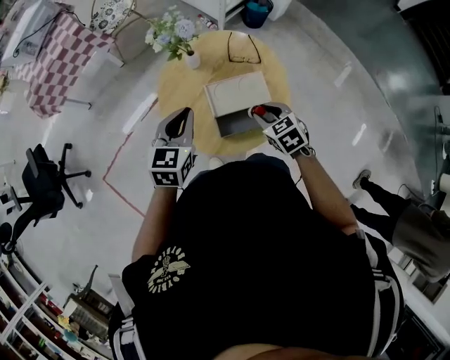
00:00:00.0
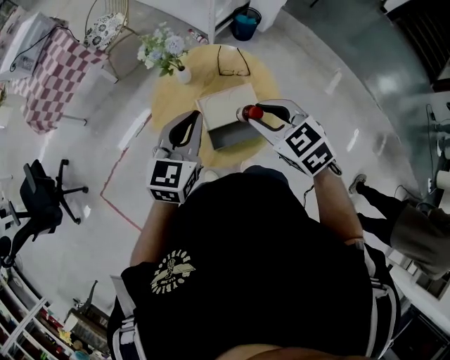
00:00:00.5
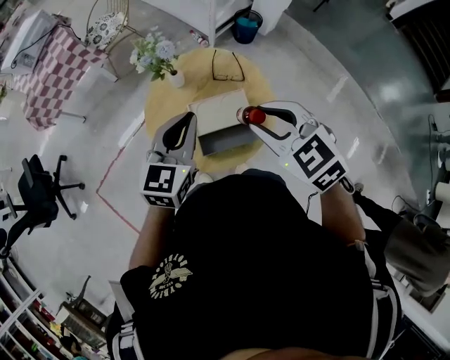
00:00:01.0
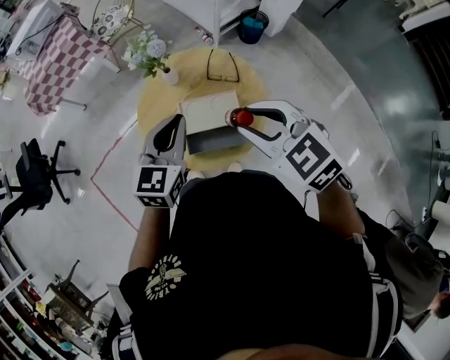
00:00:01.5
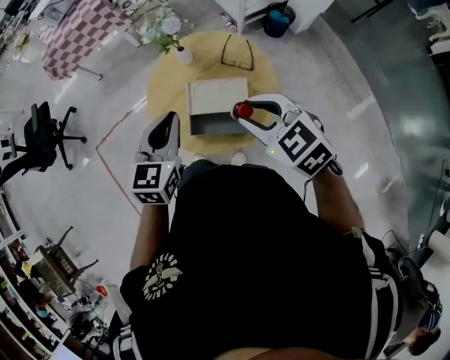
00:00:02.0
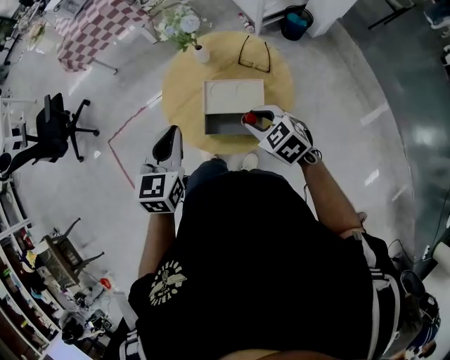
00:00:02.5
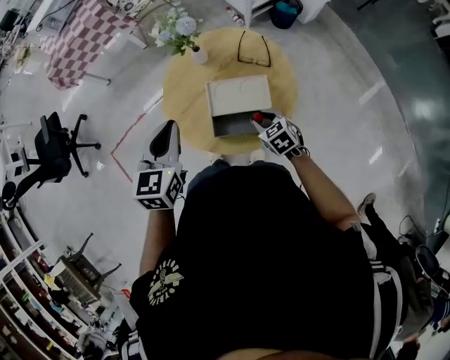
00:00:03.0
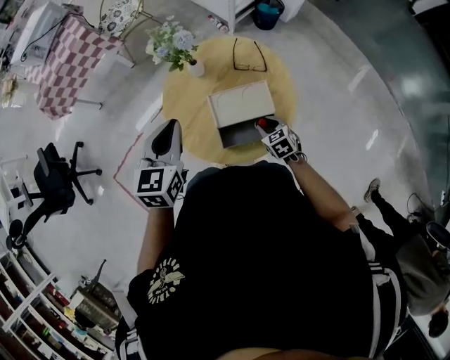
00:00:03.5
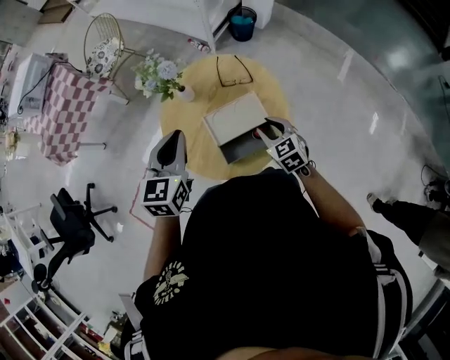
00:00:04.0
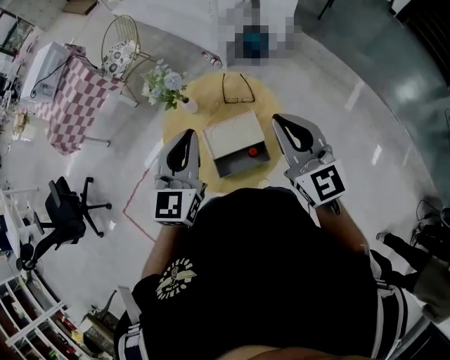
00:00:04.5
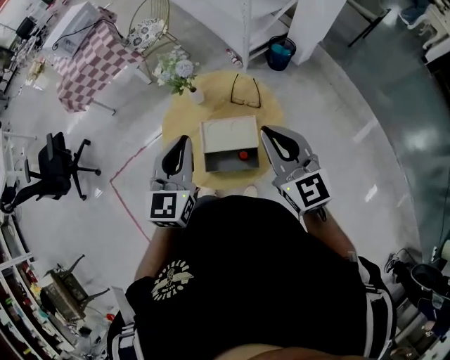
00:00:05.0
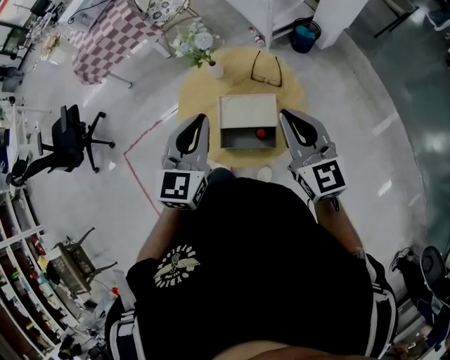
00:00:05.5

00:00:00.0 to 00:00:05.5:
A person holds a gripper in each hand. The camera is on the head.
00:00:00.0 to 00:00:02.0: The right gripper goes some 20 cm upward, and turns by some 40 degrees; the left gripper travels to the right, upward and backward by some 15 cm.
00:00:02.0 to 00:00:03.5: The left gripper travels forward and to the left by some 15 cm; the right gripper goes approximately 30 cm downward, and swivels some 40 degrees.
00:00:03.5 to 00:00:05.5: The right gripper moves upward, about 35 cm, points its fingers some 50 degrees further upward, and closes its fingers, while the left gripper moves to the right, upward and backward, some 15 cm.

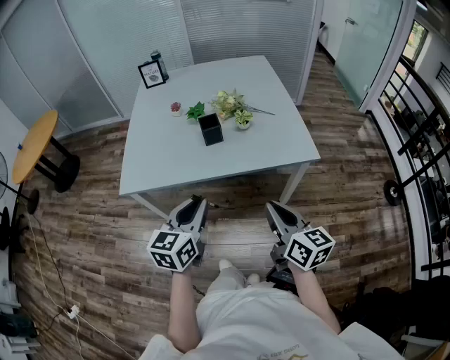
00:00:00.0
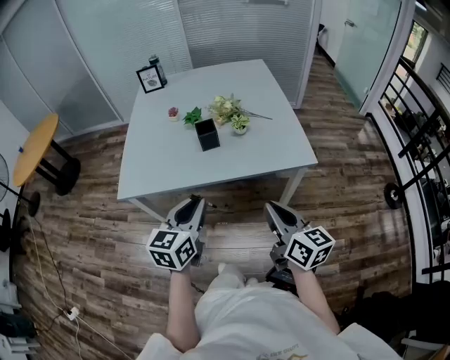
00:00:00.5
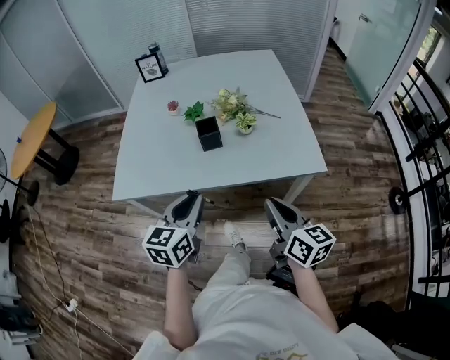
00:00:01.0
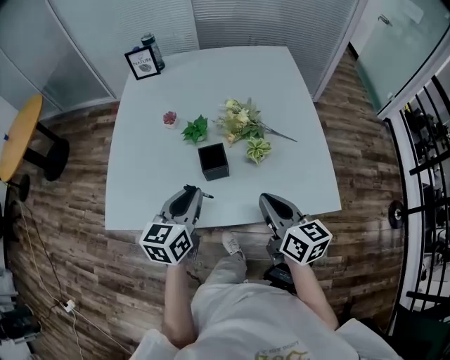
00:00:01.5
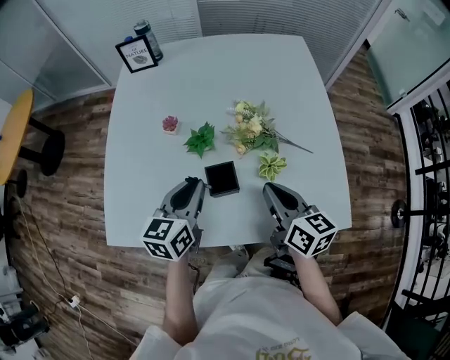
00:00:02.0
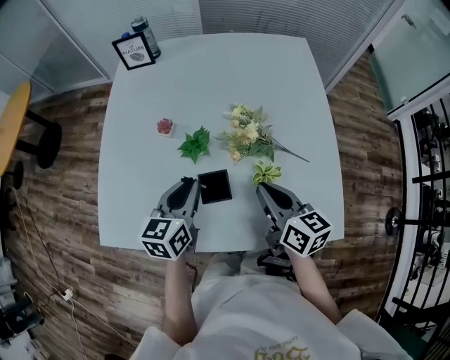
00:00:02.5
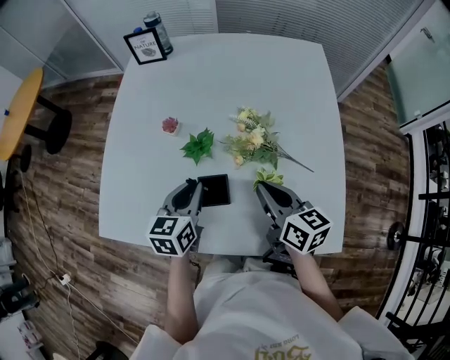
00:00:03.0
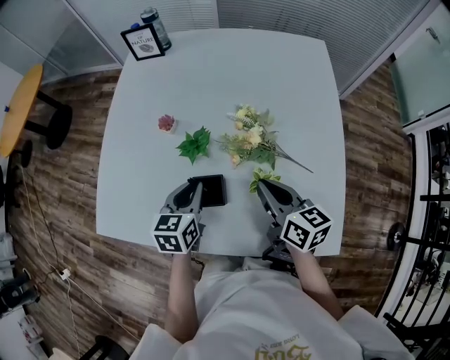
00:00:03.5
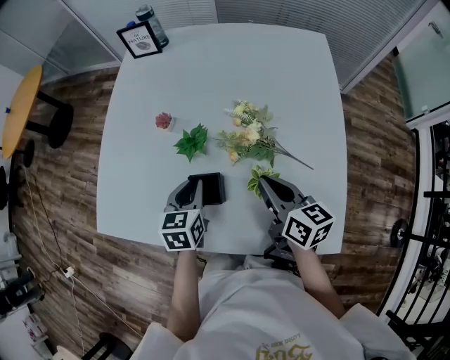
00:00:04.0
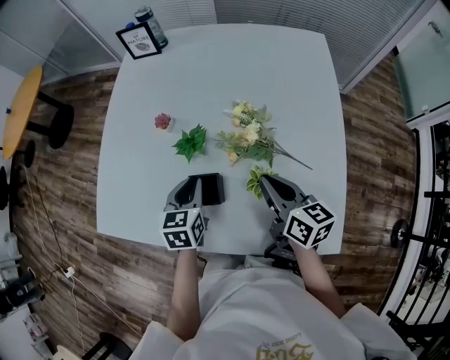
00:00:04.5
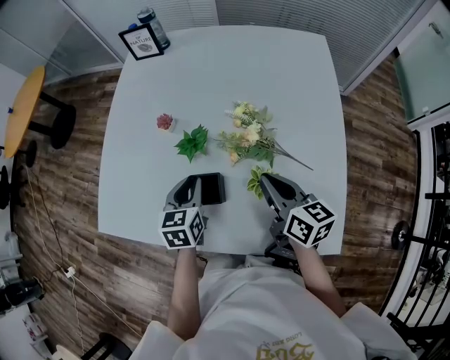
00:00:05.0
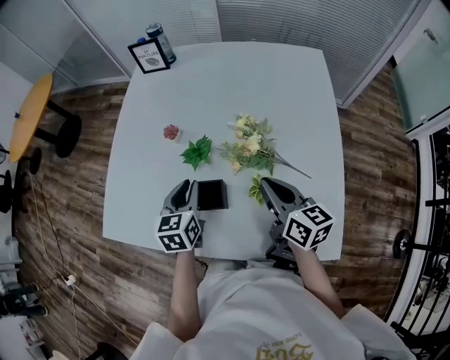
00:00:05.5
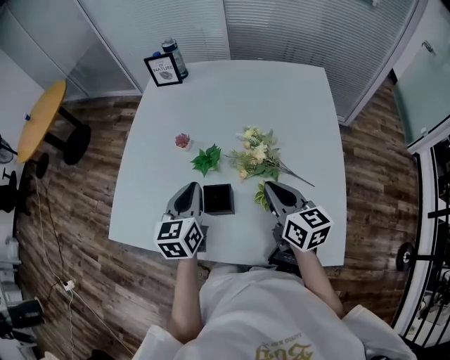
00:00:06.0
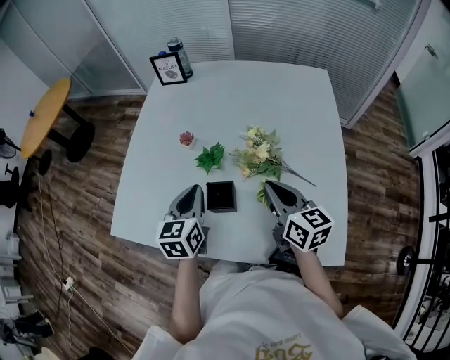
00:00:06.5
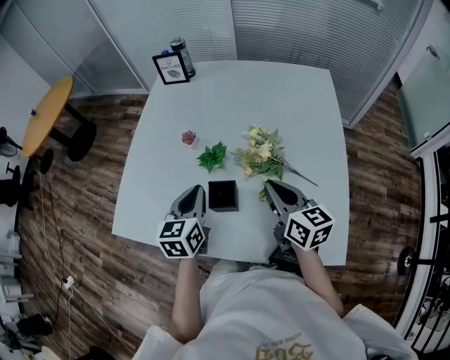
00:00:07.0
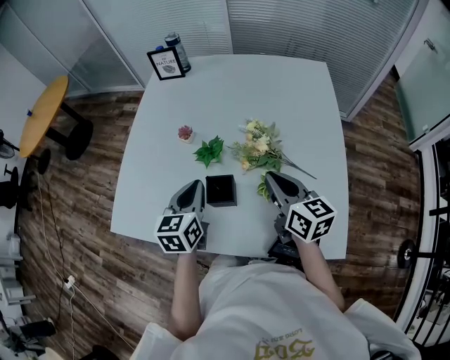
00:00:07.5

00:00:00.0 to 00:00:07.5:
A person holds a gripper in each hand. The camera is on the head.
00:00:00.0 to 00:00:02.0: Both grippers are carried forward, roughly 40 cm.
00:00:02.0 to 00:00:04.0: The left gripper heads downward, covering approximately 10 cm, and swivels some 20 degrees, while the right gripper shifts about 5 cm forward.
00:00:04.0 to 00:00:05.5: There are only small adjustments of the grippers.
00:00:05.5 to 00:00:07.5: The left gripper moves about 5 cm.

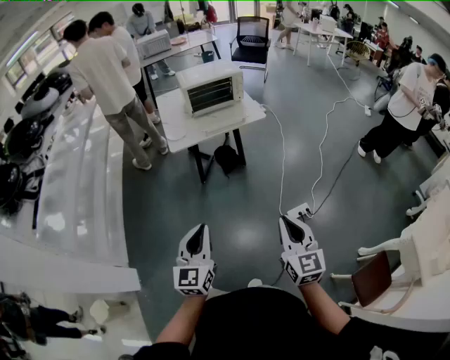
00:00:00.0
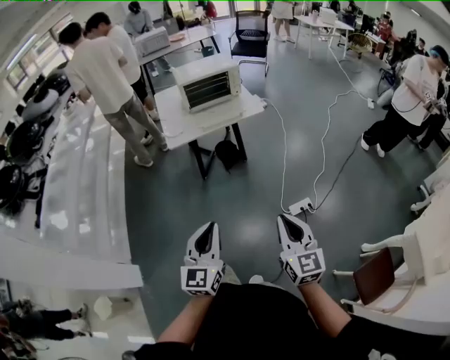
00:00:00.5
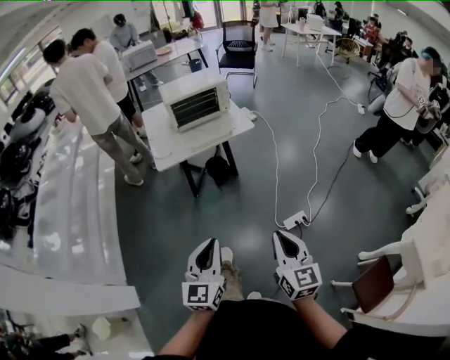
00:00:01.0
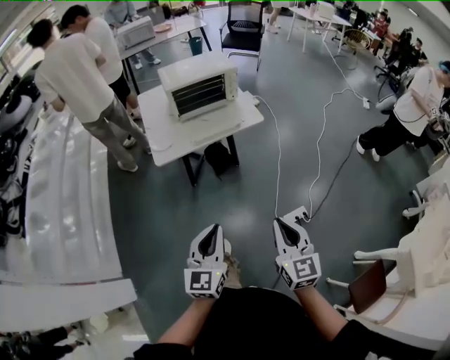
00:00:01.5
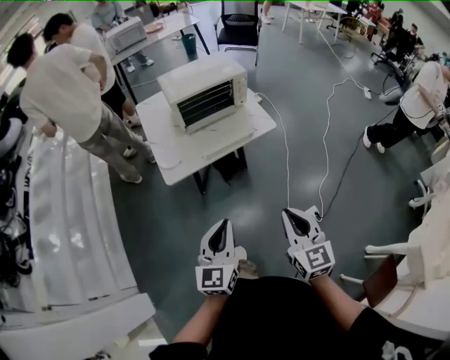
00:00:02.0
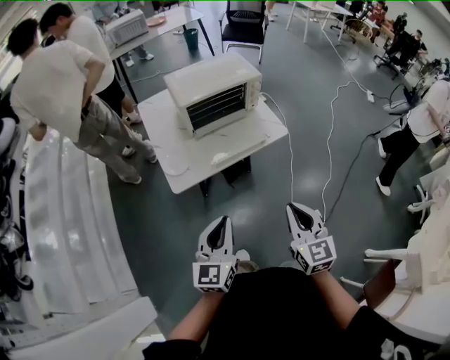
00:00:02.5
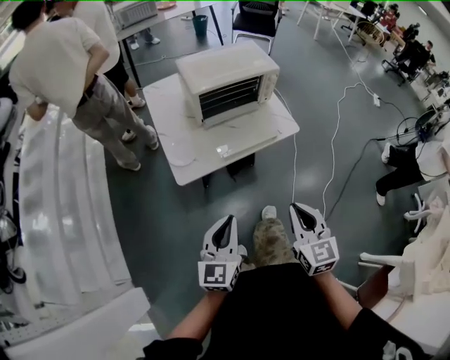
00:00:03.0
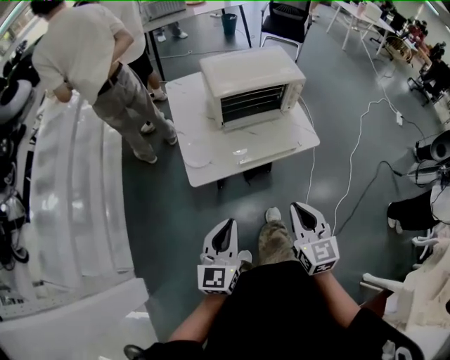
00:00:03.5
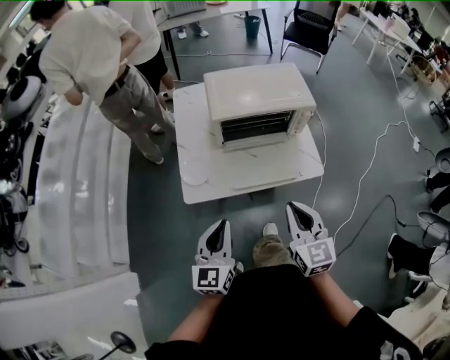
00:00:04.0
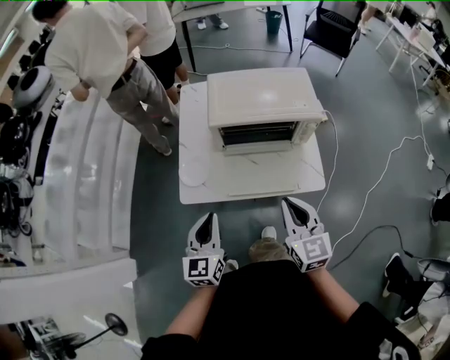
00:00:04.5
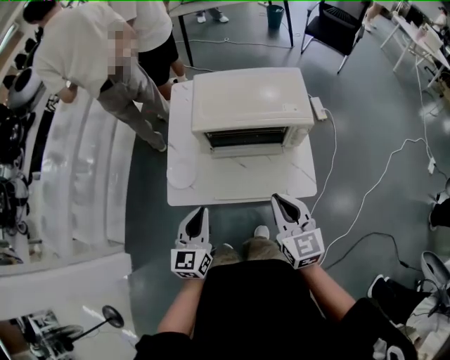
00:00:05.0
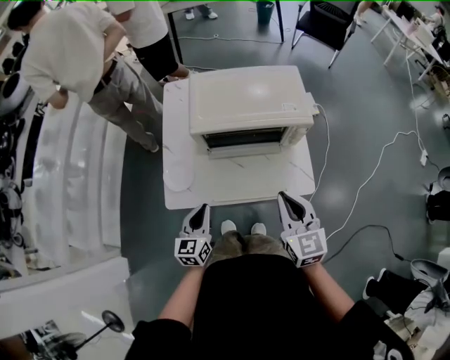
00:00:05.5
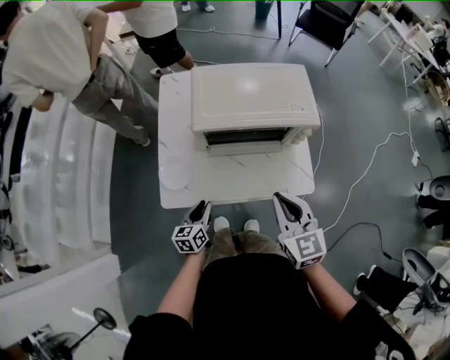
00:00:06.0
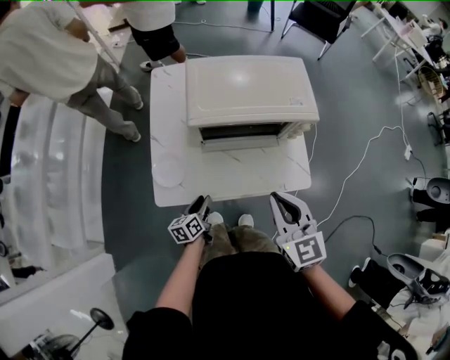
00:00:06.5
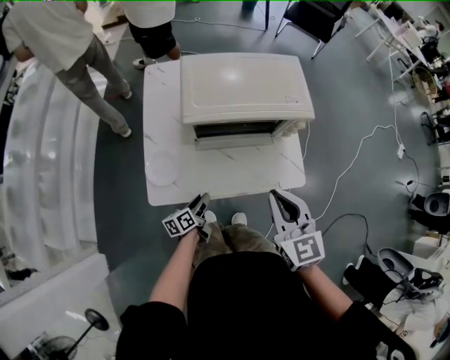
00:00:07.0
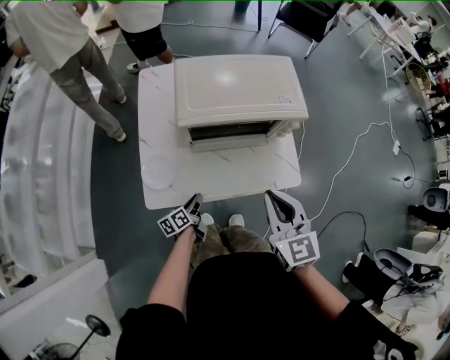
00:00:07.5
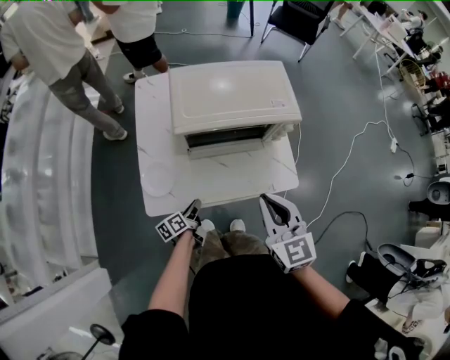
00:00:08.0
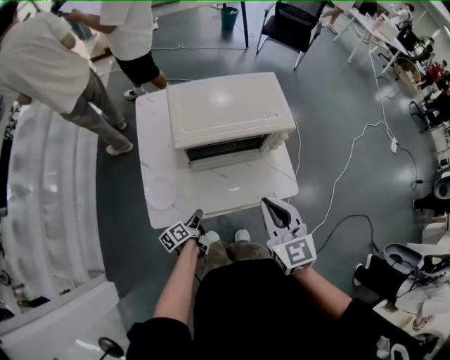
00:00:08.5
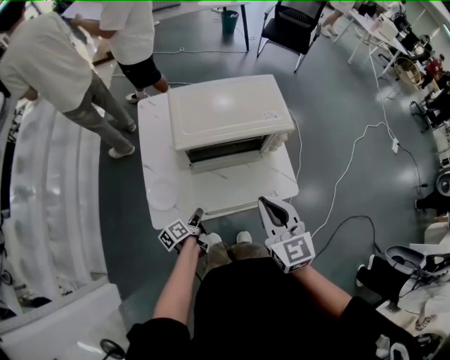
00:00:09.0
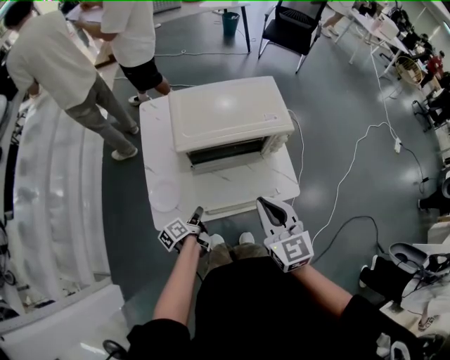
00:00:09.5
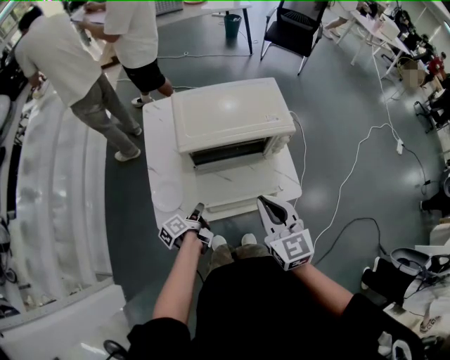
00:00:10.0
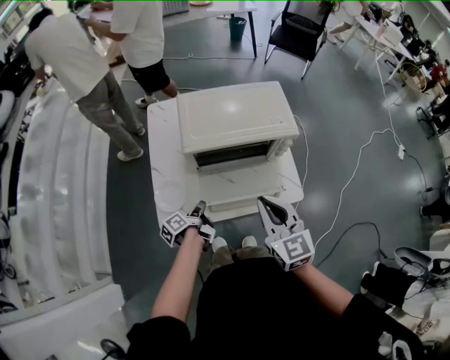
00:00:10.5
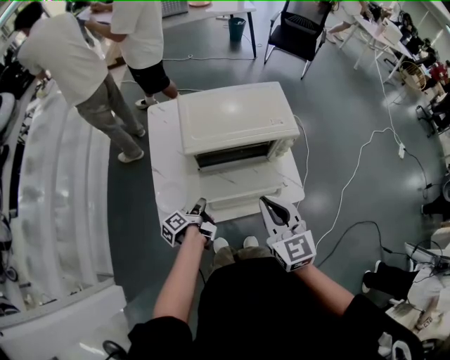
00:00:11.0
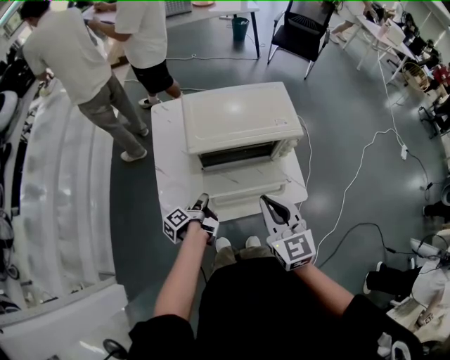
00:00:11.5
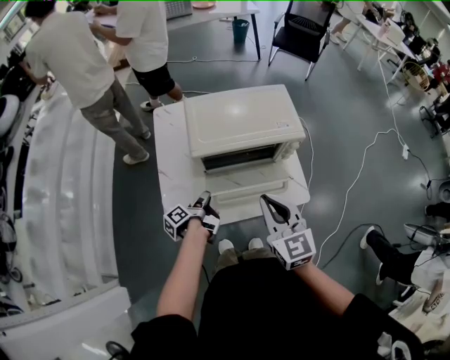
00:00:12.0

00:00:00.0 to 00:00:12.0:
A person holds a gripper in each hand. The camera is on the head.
00:00:00.0 to 00:00:02.0: Both grippers move forward, roughly 35 cm.
00:00:02.0 to 00:00:04.0: Both grippers travel together forward, roughly 30 cm.
00:00:04.0 to 00:00:06.0: The right gripper moves forward, about 15 cm, while the left gripper heads downward and forward, covering about 25 cm, and changes its angle by about 30 degrees.
00:00:06.0 to 00:00:08.0: The left gripper heads downward, covering roughly 5 cm, and changes its angle by approximately 40 degrees.
00:00:08.0 to 00:00:10.0: The left gripper heads upward, covering about 10 cm.
00:00:10.0 to 00:00:12.0: The left gripper shifts by roughly 5 cm.

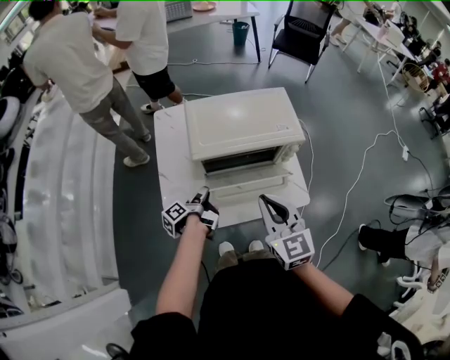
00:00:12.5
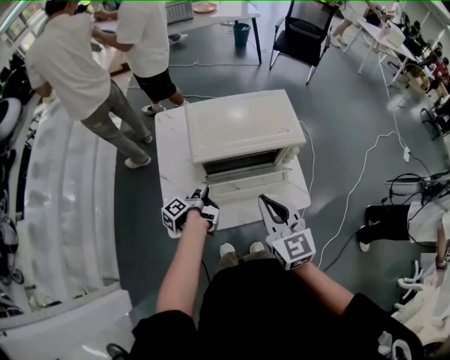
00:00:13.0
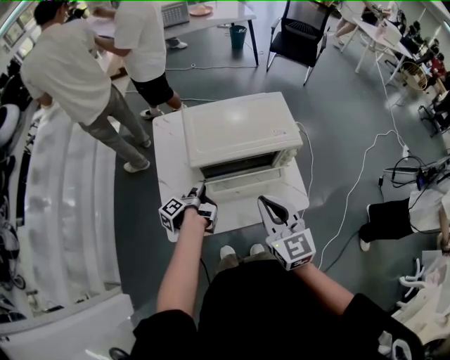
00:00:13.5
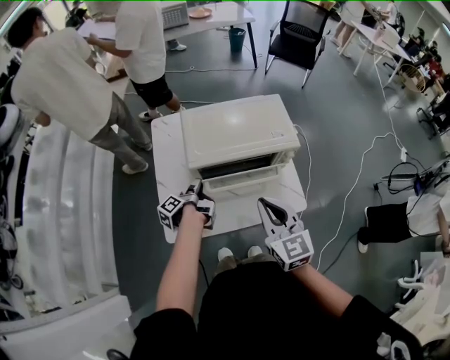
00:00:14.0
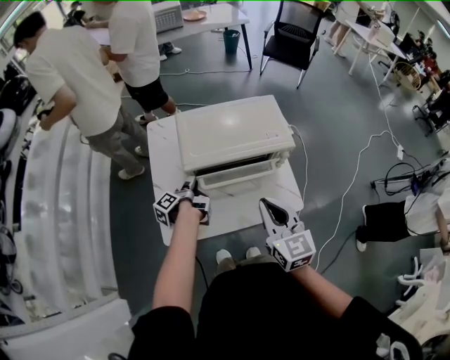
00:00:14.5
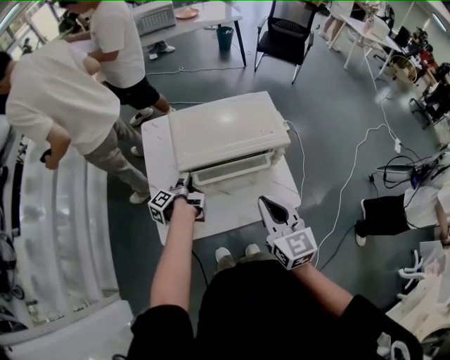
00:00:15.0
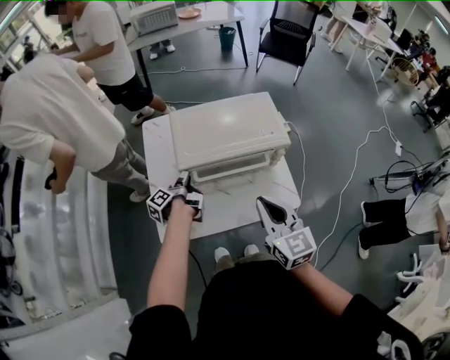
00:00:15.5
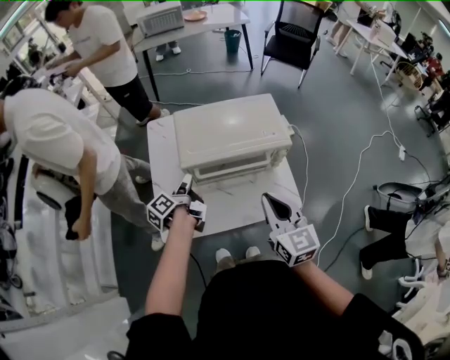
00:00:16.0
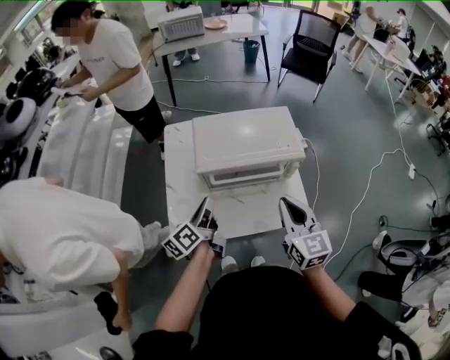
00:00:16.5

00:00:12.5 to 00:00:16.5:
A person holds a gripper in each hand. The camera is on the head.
00:00:12.5 to 00:00:14.5: The left gripper travels forward by roughly 5 cm.
00:00:14.5 to 00:00:16.5: The left gripper goes some 15 cm upward and backward, and twists some 40 degrees clockwise, seen from behind.
